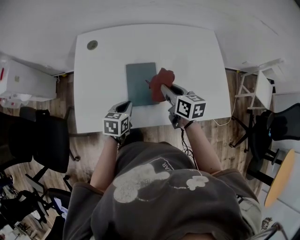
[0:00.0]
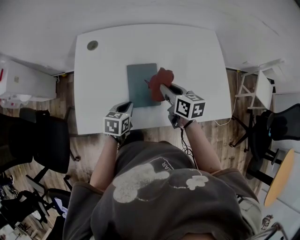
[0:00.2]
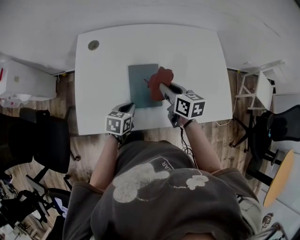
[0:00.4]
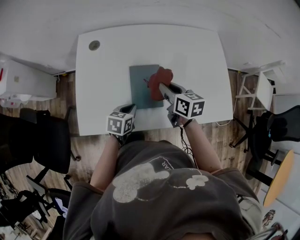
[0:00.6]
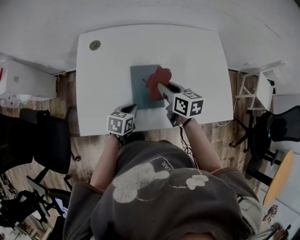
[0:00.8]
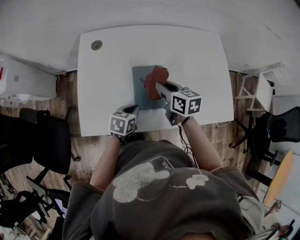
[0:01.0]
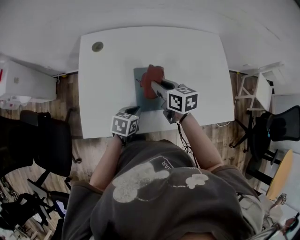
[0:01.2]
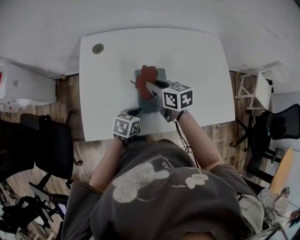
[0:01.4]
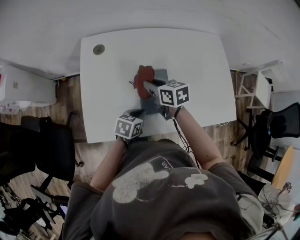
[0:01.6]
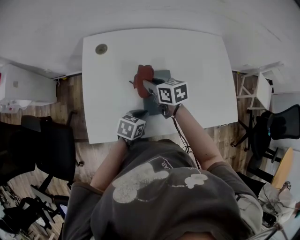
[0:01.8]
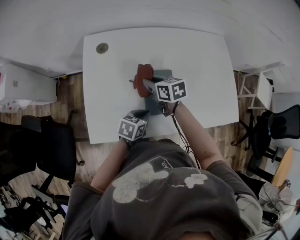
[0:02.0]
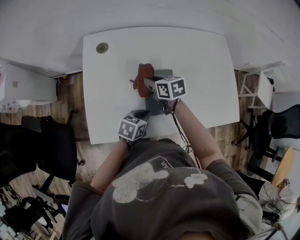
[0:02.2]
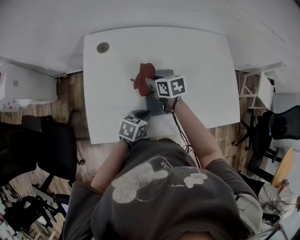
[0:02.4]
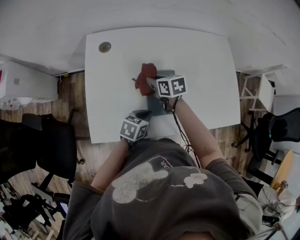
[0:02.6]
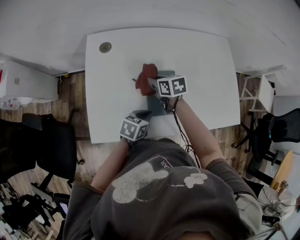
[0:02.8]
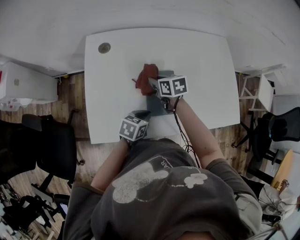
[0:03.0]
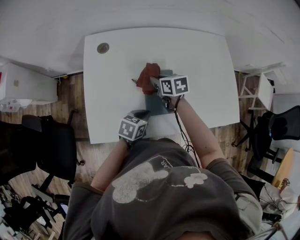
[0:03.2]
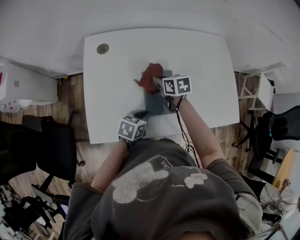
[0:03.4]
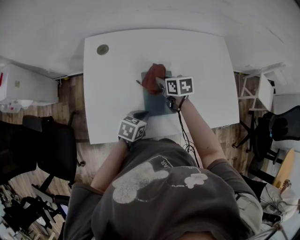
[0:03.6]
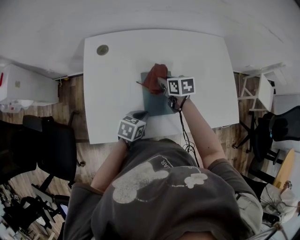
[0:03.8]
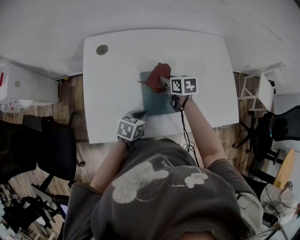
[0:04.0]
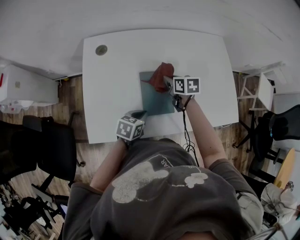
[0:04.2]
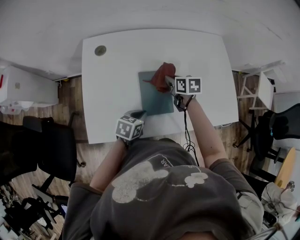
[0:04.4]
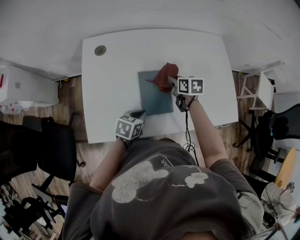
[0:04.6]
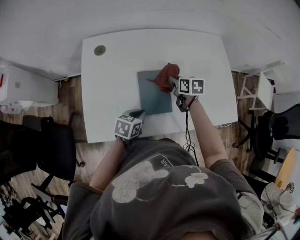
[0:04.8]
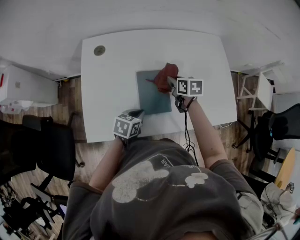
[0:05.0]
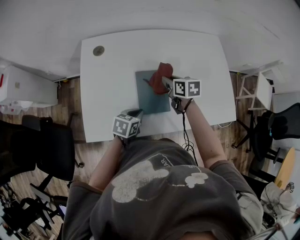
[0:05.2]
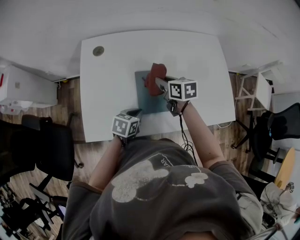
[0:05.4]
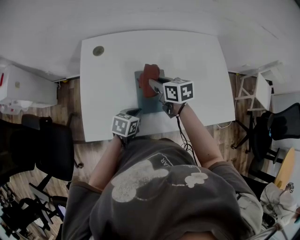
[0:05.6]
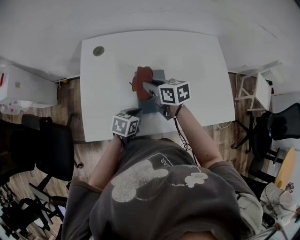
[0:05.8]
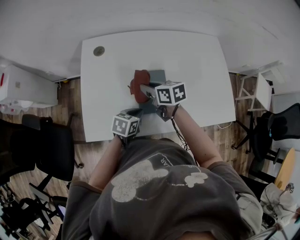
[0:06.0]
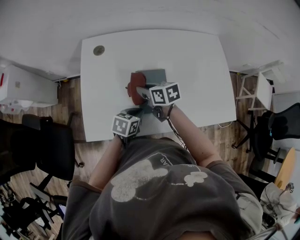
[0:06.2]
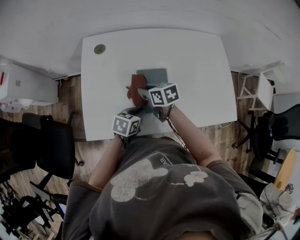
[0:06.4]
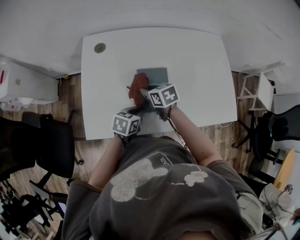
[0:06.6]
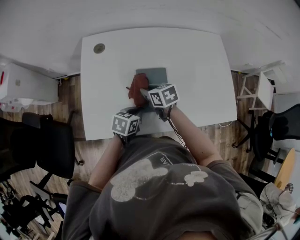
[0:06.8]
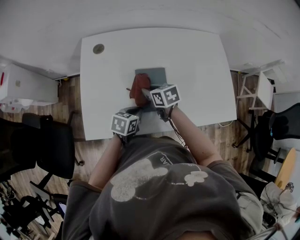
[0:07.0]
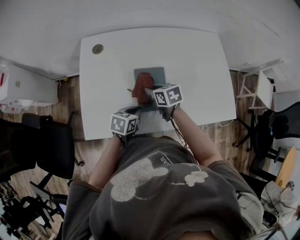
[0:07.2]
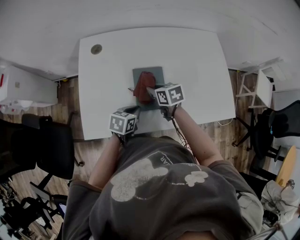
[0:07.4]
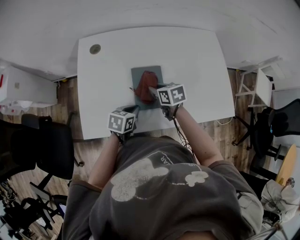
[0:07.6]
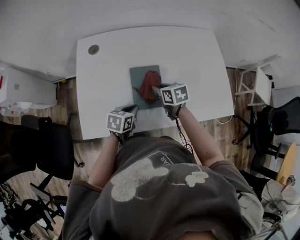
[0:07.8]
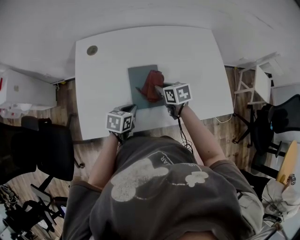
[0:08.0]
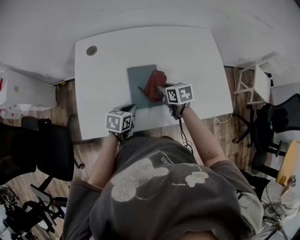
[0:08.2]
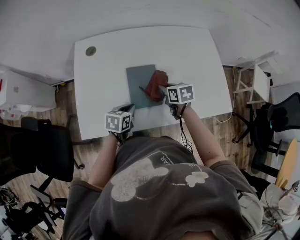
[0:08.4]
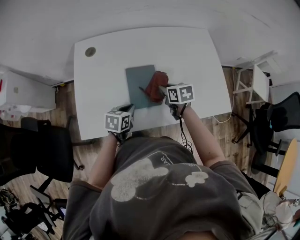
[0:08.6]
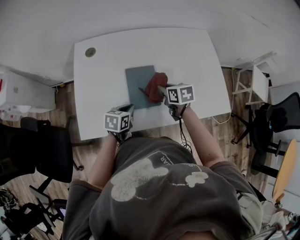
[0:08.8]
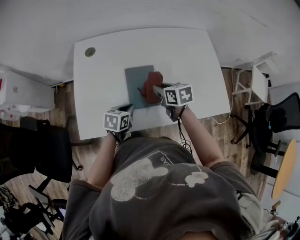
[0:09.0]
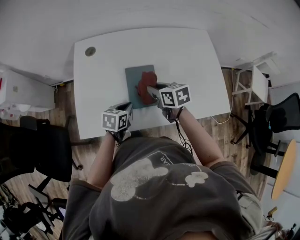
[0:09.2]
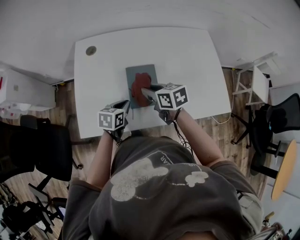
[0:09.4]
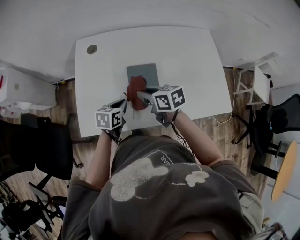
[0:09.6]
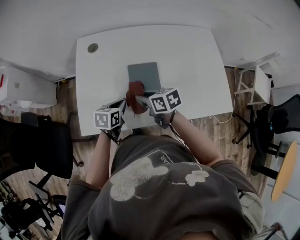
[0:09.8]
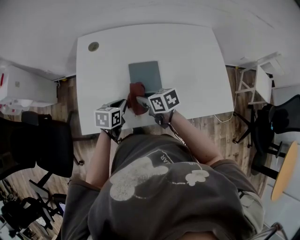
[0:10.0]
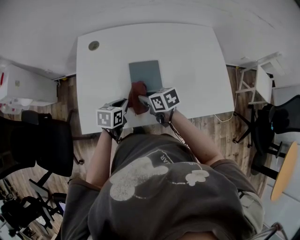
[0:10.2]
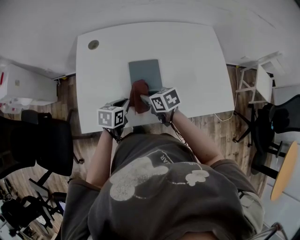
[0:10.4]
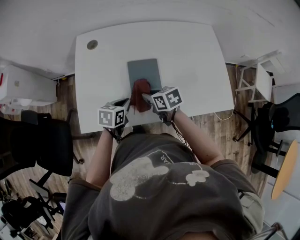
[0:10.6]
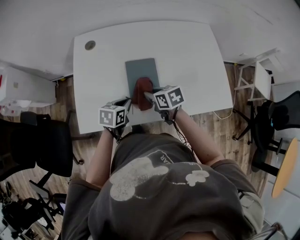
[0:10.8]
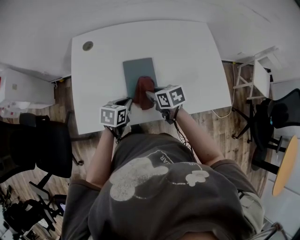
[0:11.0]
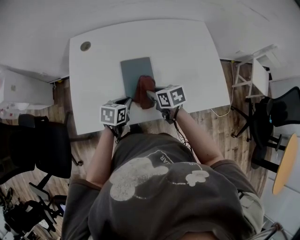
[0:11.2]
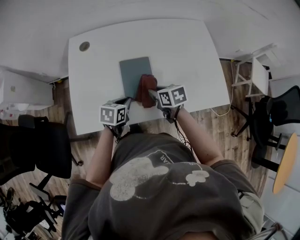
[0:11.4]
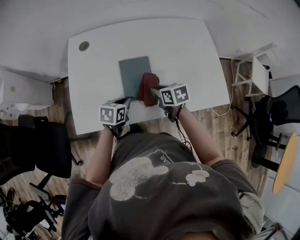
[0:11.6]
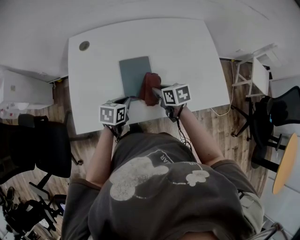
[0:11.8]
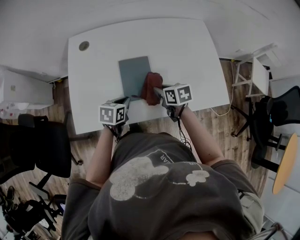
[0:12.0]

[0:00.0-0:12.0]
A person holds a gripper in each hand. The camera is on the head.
0:00.0 to 0:01.6: The right gripper is displaced to the left by approximately 15 cm.
0:01.6 to 0:03.0: The right gripper shifts about 5 cm downward.
0:03.0 to 0:04.4: The right gripper goes some 10 cm to the right.
0:04.4 to 0:06.0: The right gripper goes about 15 cm to the left, backward and upward, and turns by some 20 degrees.
0:06.0 to 0:07.6: The right gripper shifts roughly 10 cm to the right and downward.
0:07.6 to 0:09.0: The right gripper is displaced to the right by roughly 5 cm.
0:09.0 to 0:10.4: The right gripper travels to the left and backward by some 10 cm.
0:10.4 to 0:12.0: The right gripper shifts about 10 cm to the right.

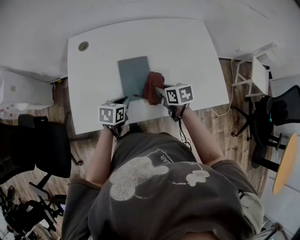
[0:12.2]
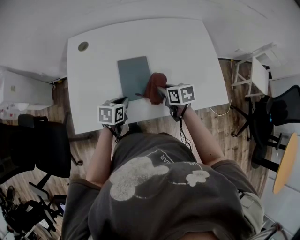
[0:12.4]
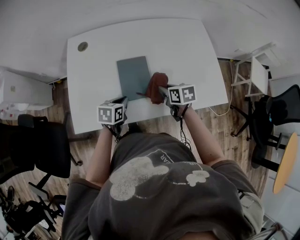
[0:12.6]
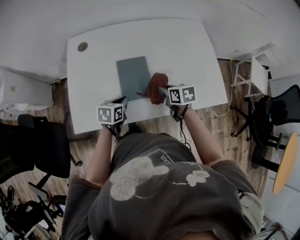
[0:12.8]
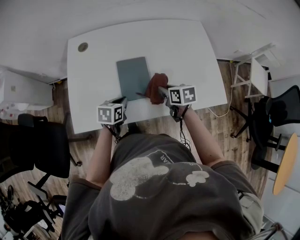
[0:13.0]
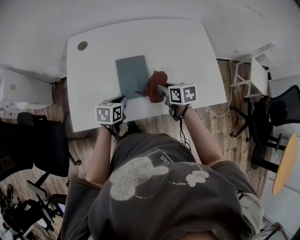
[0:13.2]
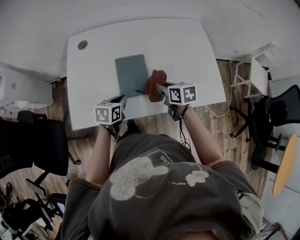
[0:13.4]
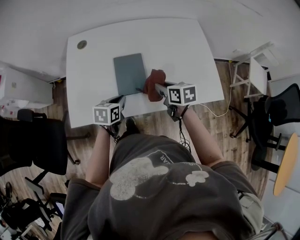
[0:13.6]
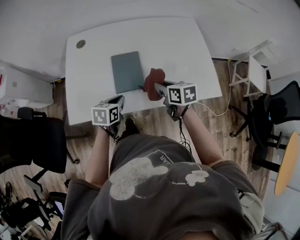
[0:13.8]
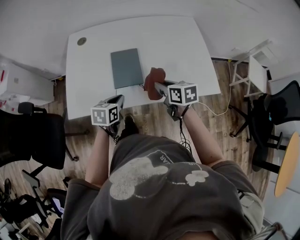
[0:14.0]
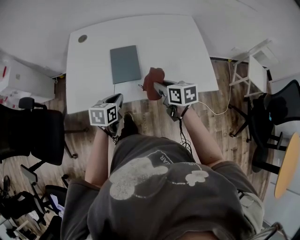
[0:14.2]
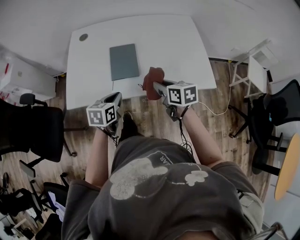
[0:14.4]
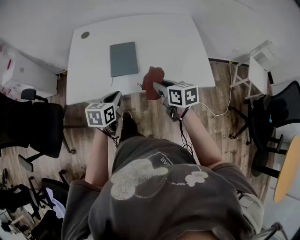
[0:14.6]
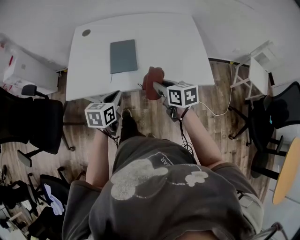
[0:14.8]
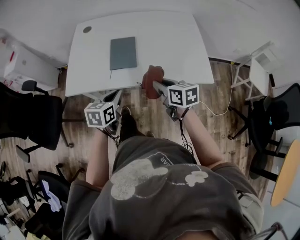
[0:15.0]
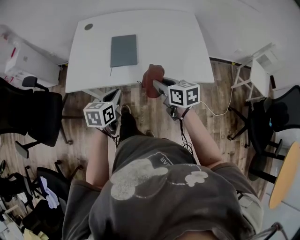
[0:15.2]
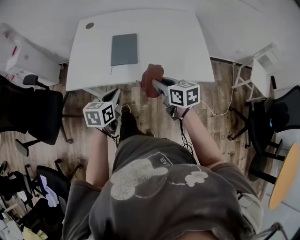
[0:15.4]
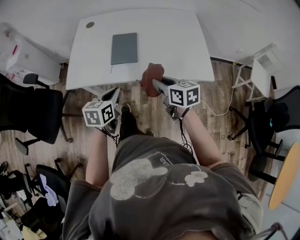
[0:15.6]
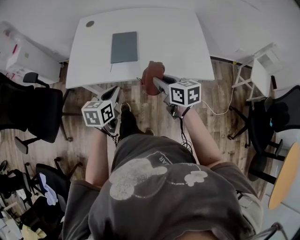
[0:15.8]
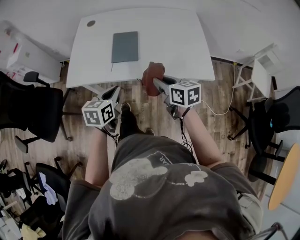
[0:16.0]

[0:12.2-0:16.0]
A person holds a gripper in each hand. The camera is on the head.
0:12.2 to 0:13.4: There are only small adjustments of the grippers.
0:13.4 to 0:14.8: The two grippers go some 20 cm backward and upward.
0:14.8 to 0:16.0: The grippers make only small movements.

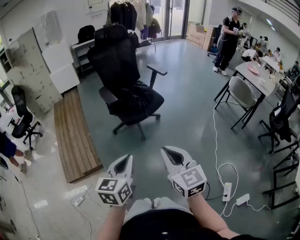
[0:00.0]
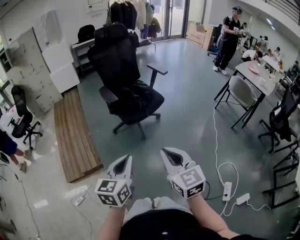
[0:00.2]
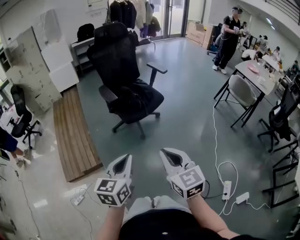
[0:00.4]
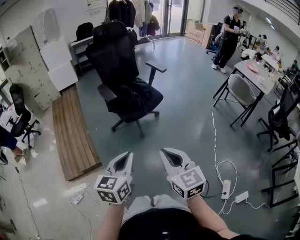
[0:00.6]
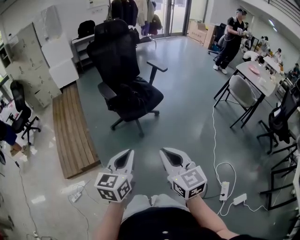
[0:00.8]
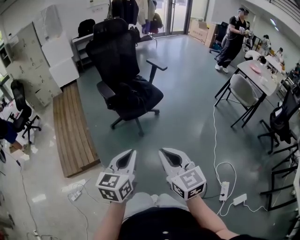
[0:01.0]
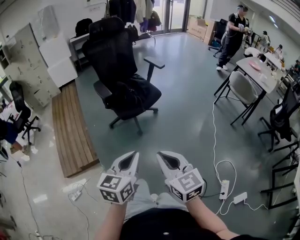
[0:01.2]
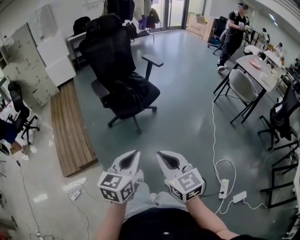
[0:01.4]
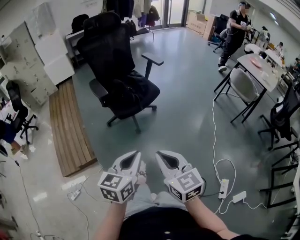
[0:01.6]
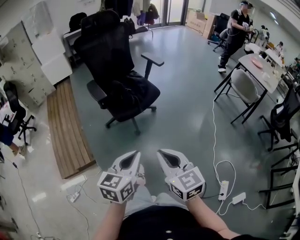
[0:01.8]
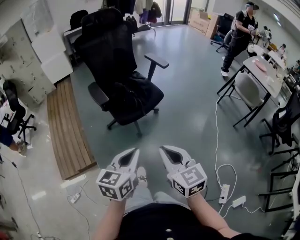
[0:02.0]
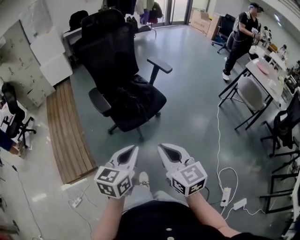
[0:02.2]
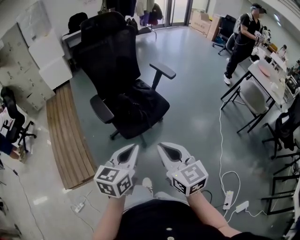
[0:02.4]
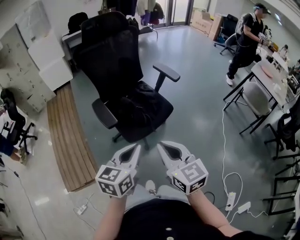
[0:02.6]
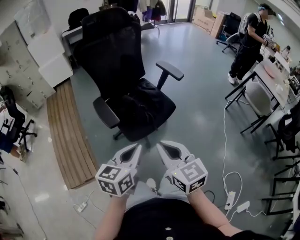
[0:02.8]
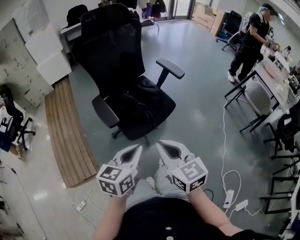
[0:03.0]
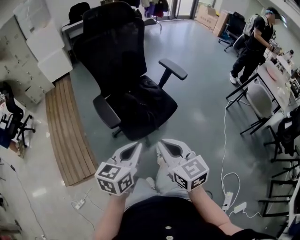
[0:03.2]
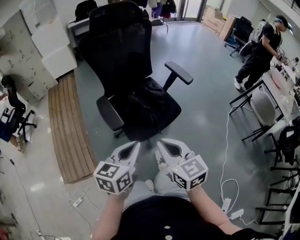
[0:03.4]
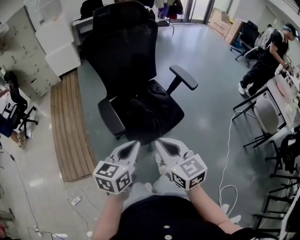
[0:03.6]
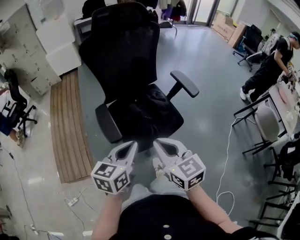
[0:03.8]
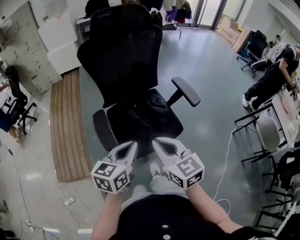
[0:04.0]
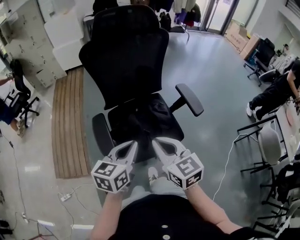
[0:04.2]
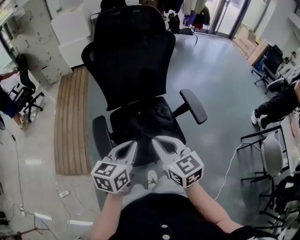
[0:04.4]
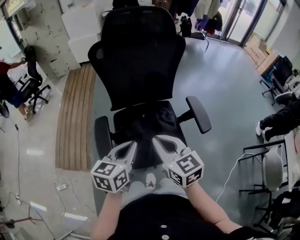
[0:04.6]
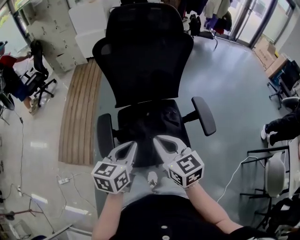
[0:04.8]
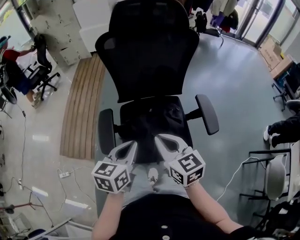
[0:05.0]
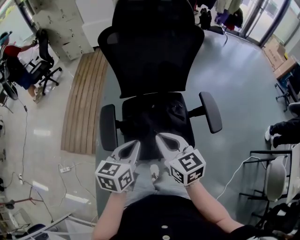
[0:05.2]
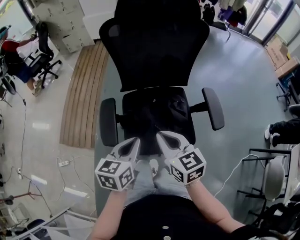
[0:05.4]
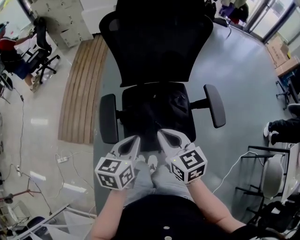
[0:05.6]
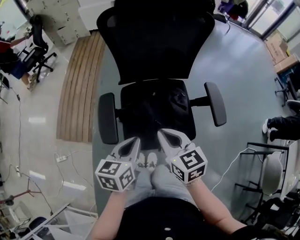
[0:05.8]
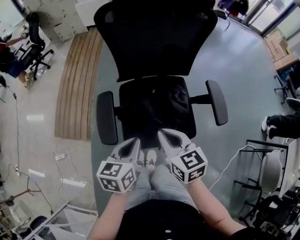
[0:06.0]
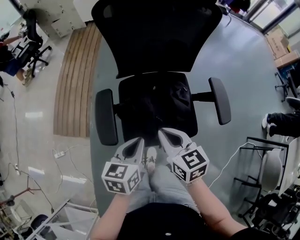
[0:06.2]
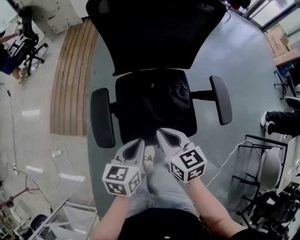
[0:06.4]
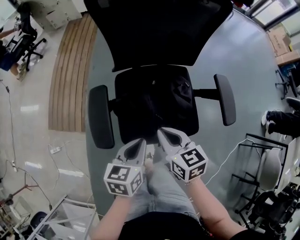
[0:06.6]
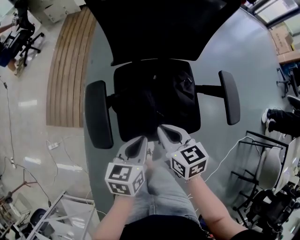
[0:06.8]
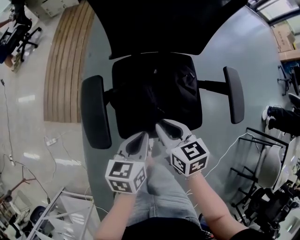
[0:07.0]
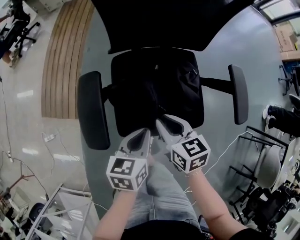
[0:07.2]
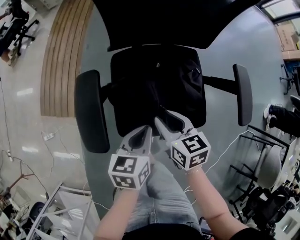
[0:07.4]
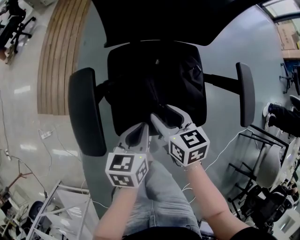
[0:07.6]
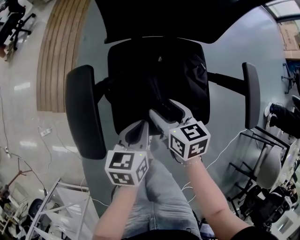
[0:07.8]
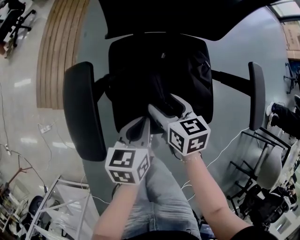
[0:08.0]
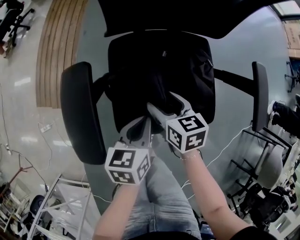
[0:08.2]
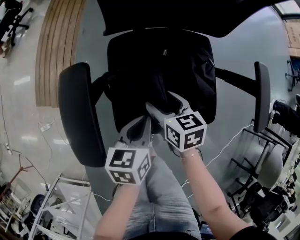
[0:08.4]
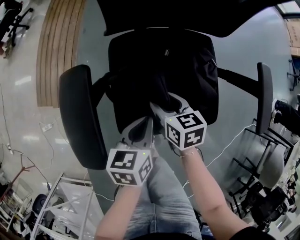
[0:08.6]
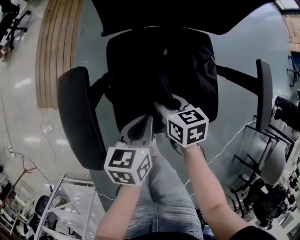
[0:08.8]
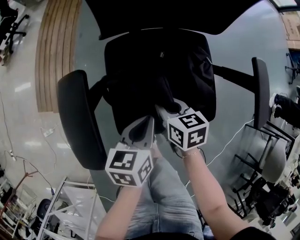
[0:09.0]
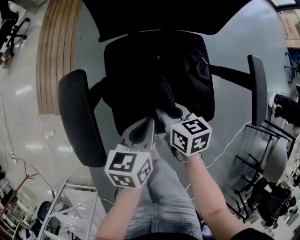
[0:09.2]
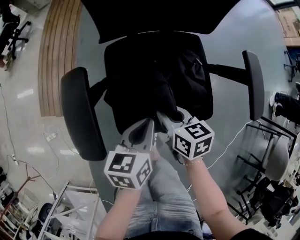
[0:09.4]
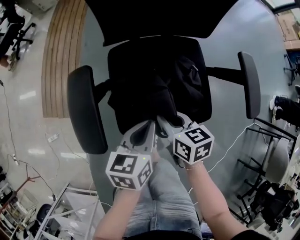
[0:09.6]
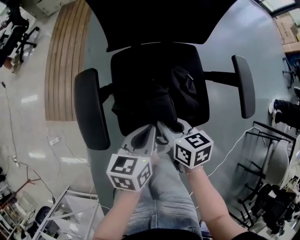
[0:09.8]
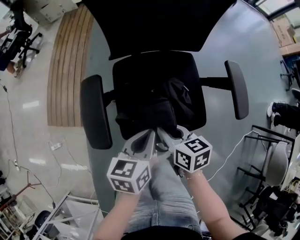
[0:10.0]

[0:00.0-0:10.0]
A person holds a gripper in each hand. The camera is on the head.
0:00.0 to 0:01.4: The right gripper shifts by some 5 cm. The left gripper shifts roughly 10 cm to the right.
0:01.4 to 0:02.8: The two grippers go about 35 cm forward.
0:02.8 to 0:04.2: The grippers both shift forward by approximately 25 cm.
0:04.2 to 0:05.8: The left gripper heads downward, covering about 5 cm, and changes its angle by about 20 degrees, while the right gripper is displaced forward and downward by approximately 10 cm.
0:05.8 to 0:07.2: The two grippers go roughly 15 cm downward.
0:07.2 to 0:08.6: The left gripper is displaced downward by approximately 10 cm, while the right gripper is displaced downward and forward by some 15 cm, and opens its fingers.
0:08.6 to 0:10.0: Both grippers move upward and backward, some 15 cm. The right gripper closes up.
